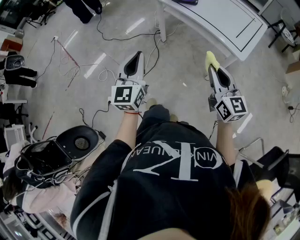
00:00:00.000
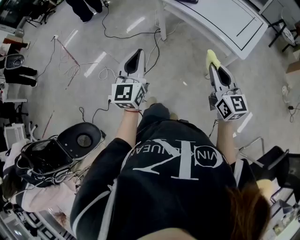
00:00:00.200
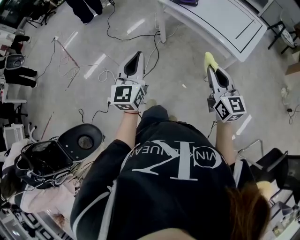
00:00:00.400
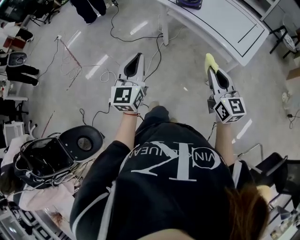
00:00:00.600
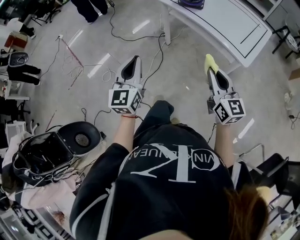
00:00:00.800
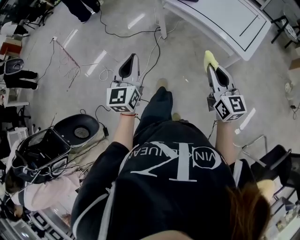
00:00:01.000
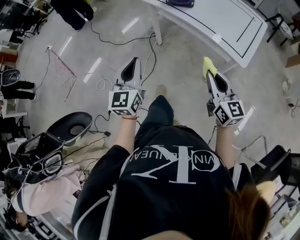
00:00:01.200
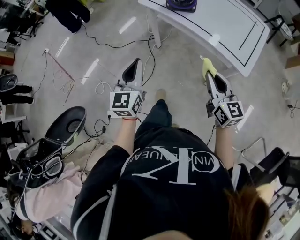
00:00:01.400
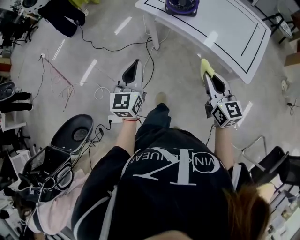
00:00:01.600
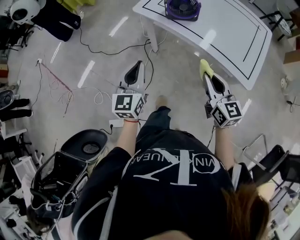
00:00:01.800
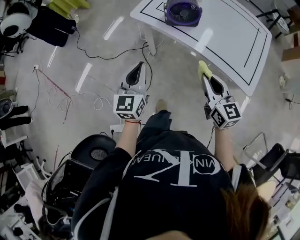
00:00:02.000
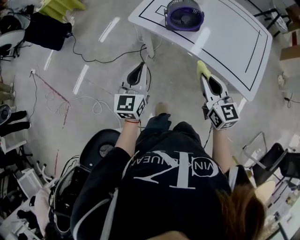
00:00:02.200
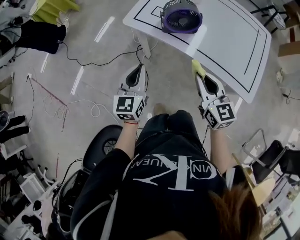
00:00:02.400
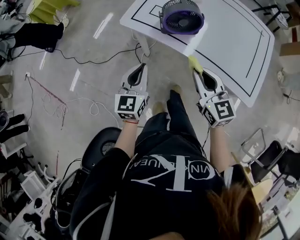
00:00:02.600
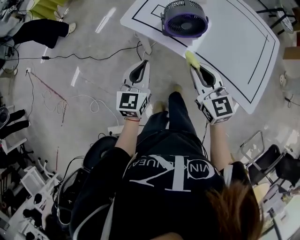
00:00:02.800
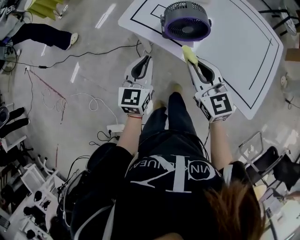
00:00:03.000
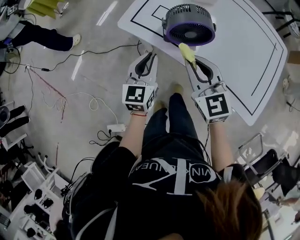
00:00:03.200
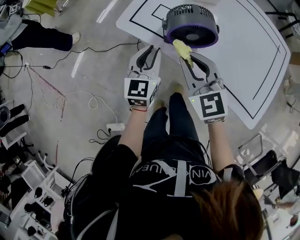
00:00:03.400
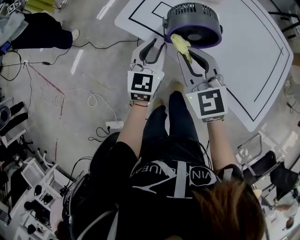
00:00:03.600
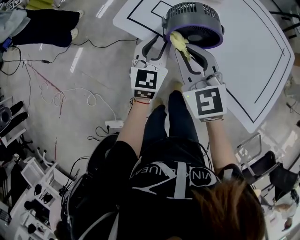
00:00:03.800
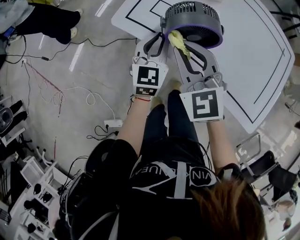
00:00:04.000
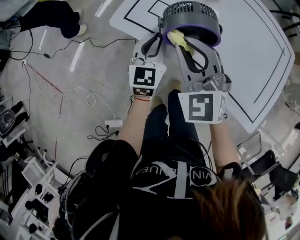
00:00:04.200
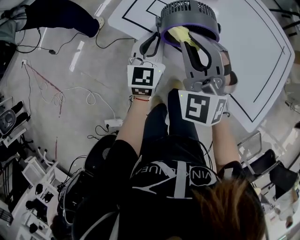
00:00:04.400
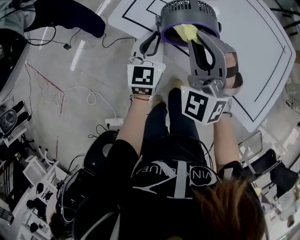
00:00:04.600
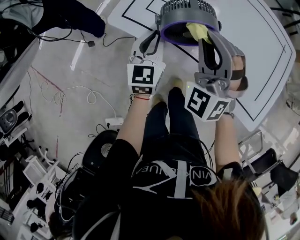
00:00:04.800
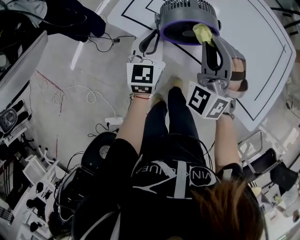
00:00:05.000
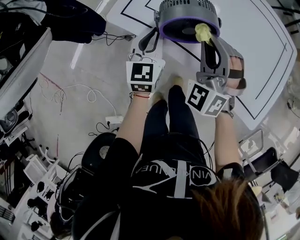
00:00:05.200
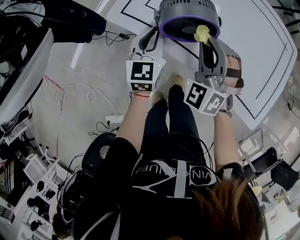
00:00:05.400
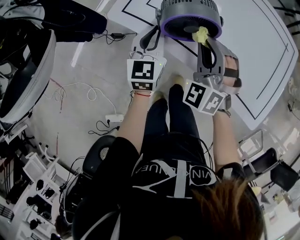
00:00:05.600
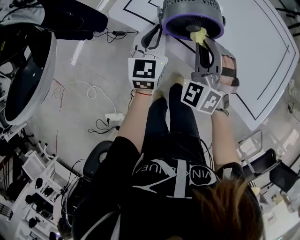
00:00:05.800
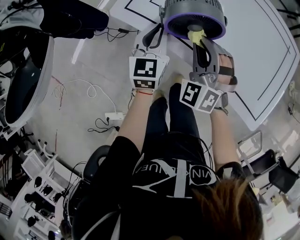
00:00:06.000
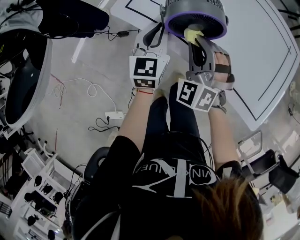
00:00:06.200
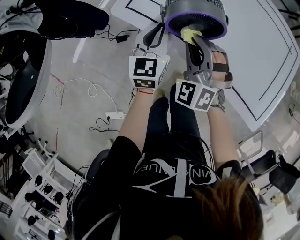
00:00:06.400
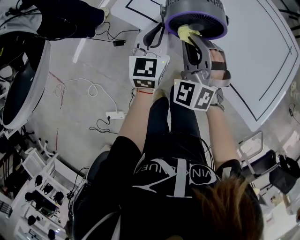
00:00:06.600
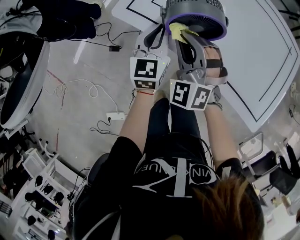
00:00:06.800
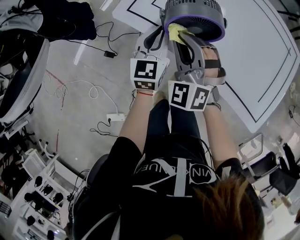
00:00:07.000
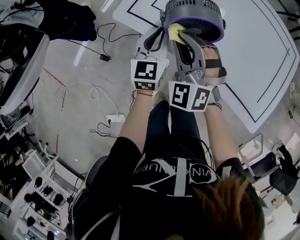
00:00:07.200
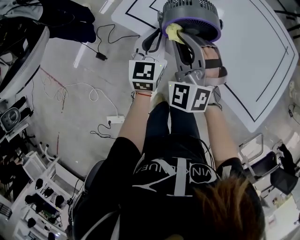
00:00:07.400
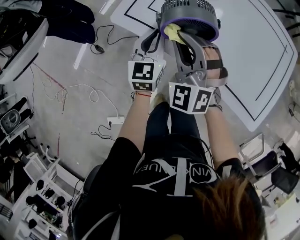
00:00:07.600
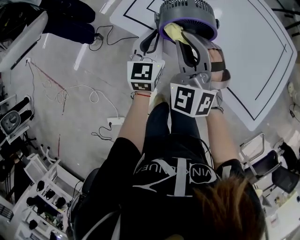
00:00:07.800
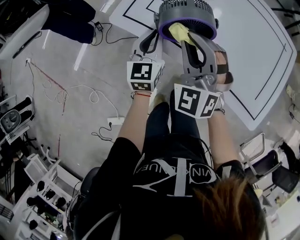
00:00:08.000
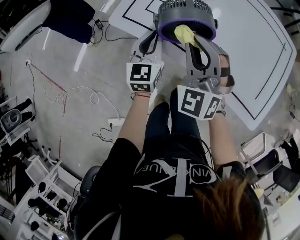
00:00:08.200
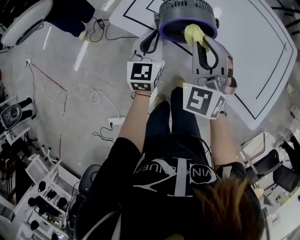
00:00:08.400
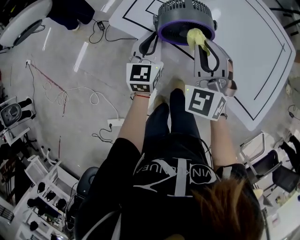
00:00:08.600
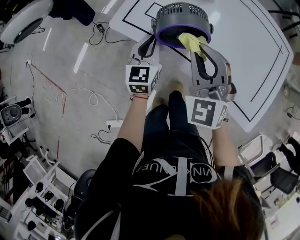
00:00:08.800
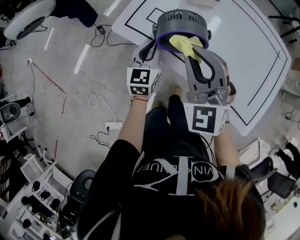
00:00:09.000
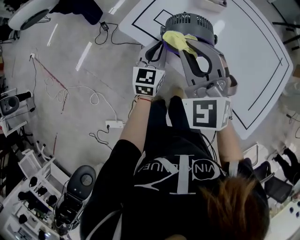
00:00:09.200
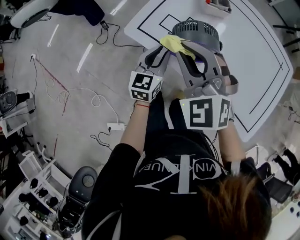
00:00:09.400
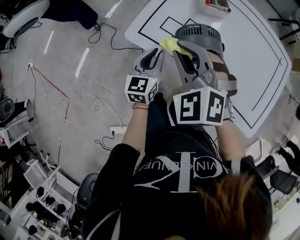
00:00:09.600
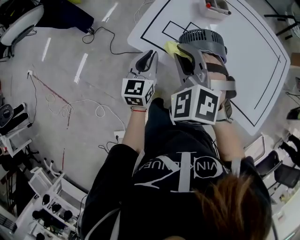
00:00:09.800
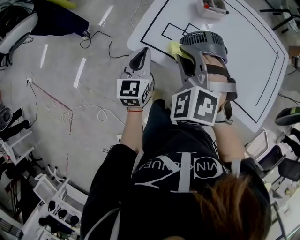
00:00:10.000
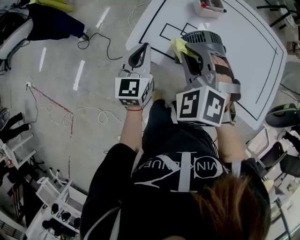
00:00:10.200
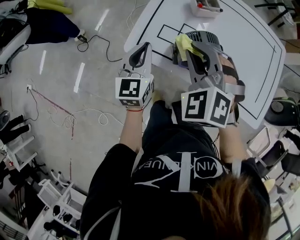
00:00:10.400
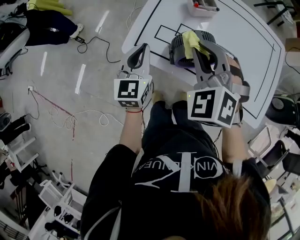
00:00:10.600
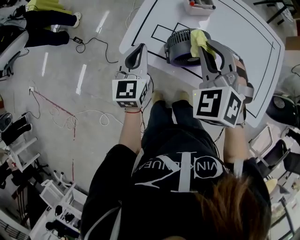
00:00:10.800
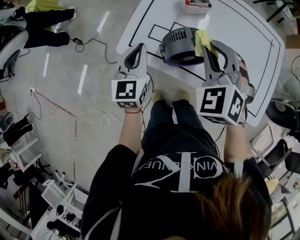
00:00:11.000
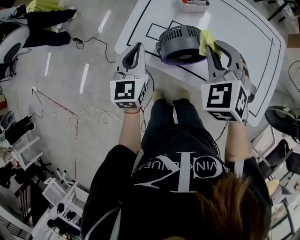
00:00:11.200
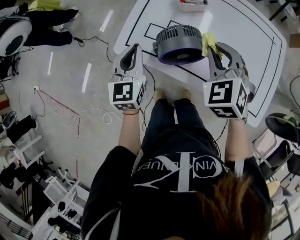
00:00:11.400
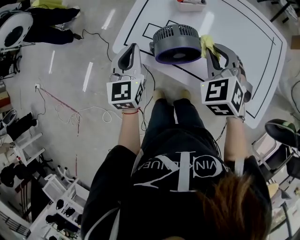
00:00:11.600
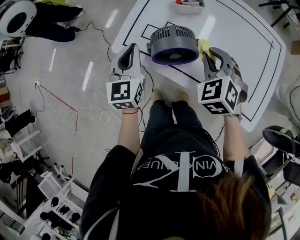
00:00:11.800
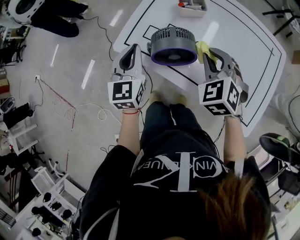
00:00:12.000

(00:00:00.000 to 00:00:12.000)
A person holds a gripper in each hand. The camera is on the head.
00:00:00.000 - 00:00:01.600: The grippers both shift forward by roughly 20 cm.
00:00:01.600 - 00:00:03.000: The grippers both shift forward by roughly 25 cm.
00:00:03.000 - 00:00:04.400: The left gripper shifts approximately 10 cm forward and to the right; the right gripper heads forward, covering roughly 10 cm, and rolls counterclockwise, seen from behind, by about 40 degrees.
00:00:04.400 - 00:00:06.000: The right gripper travels downward by about 10 cm.
00:00:06.000 - 00:00:07.600: The right gripper is displaced upward by roughly 5 cm.
00:00:07.600 - 00:00:09.000: The right gripper moves upward, some 5 cm.
00:00:09.000 - 00:00:10.400: The left gripper goes approximately 10 cm upward and to the left. Meanwhile the right gripper shifts about 10 cm forward and to the left, and swivels some 30 degrees.
00:00:10.400 - 00:00:12.000: The left gripper shifts some 5 cm to the right, while the right gripper heads to the right, covering about 15 cm.

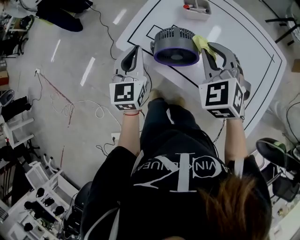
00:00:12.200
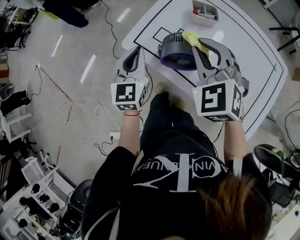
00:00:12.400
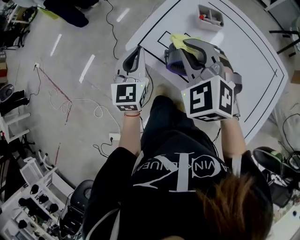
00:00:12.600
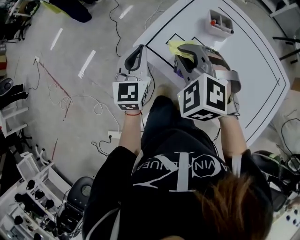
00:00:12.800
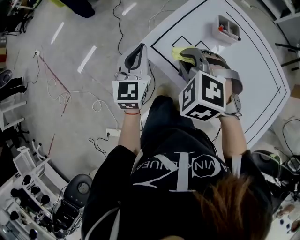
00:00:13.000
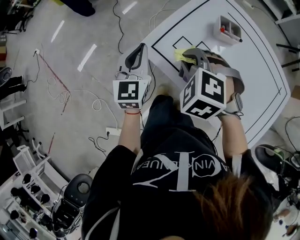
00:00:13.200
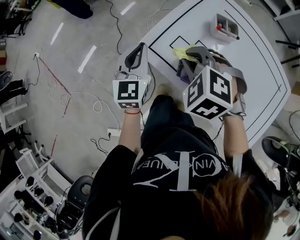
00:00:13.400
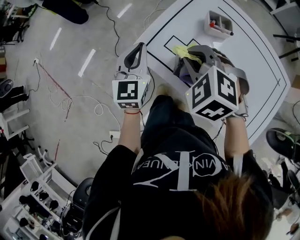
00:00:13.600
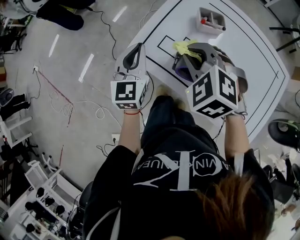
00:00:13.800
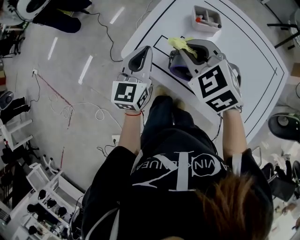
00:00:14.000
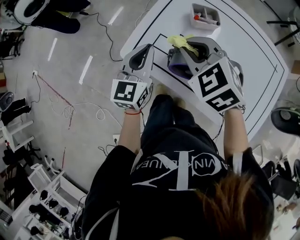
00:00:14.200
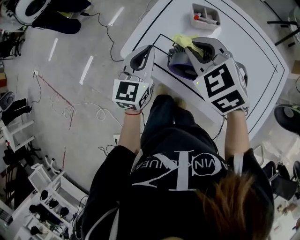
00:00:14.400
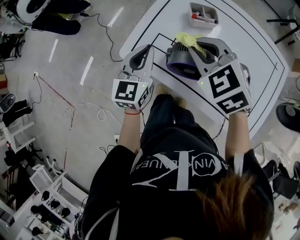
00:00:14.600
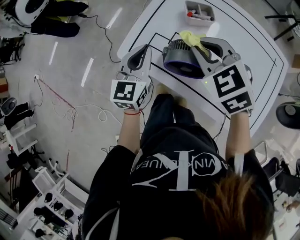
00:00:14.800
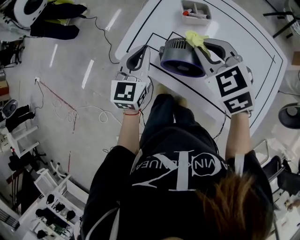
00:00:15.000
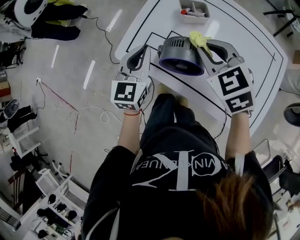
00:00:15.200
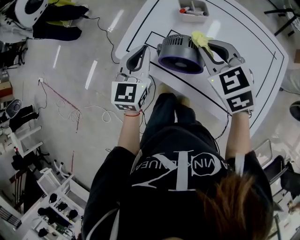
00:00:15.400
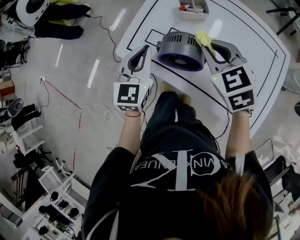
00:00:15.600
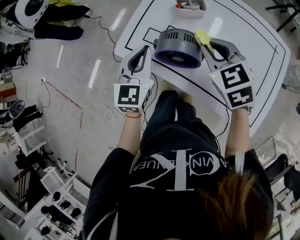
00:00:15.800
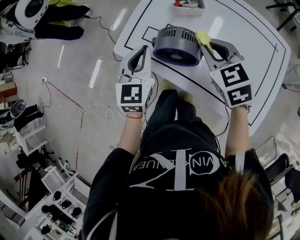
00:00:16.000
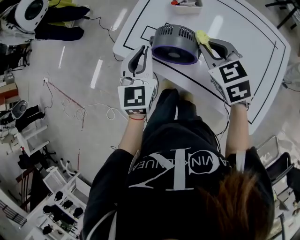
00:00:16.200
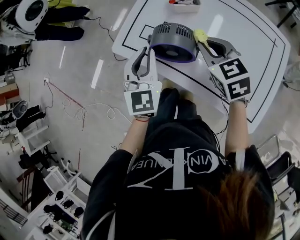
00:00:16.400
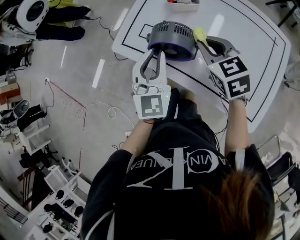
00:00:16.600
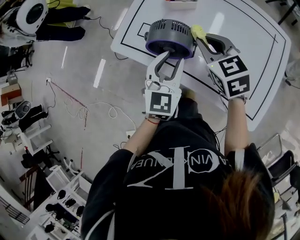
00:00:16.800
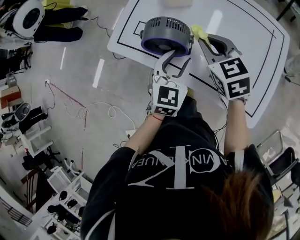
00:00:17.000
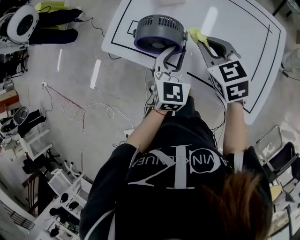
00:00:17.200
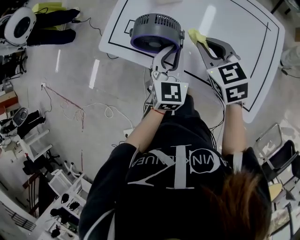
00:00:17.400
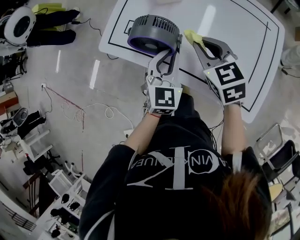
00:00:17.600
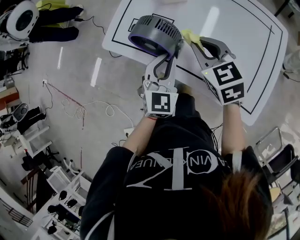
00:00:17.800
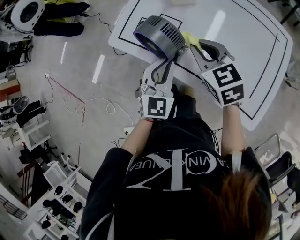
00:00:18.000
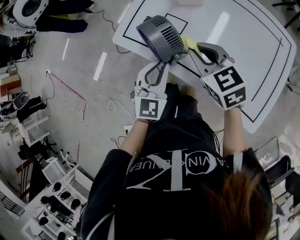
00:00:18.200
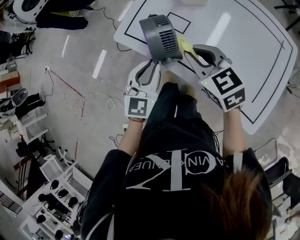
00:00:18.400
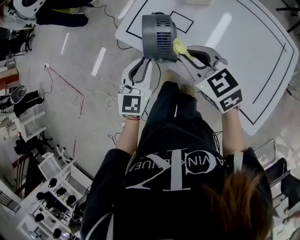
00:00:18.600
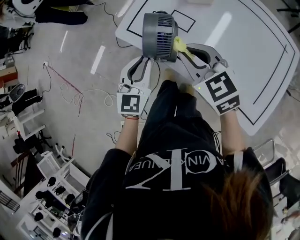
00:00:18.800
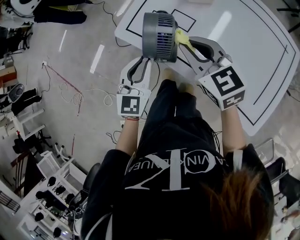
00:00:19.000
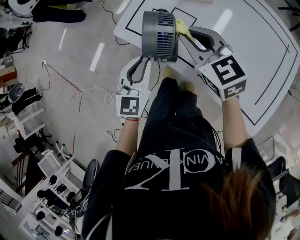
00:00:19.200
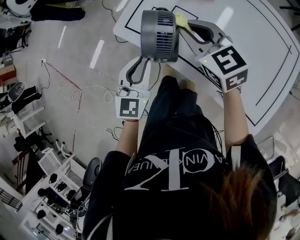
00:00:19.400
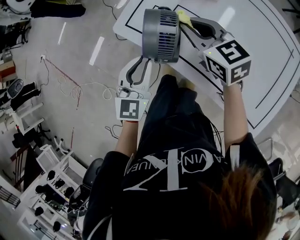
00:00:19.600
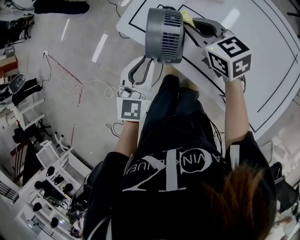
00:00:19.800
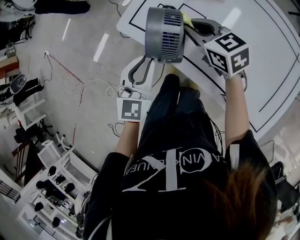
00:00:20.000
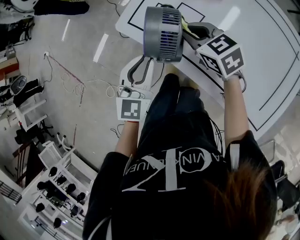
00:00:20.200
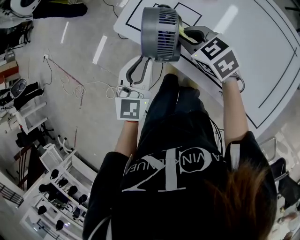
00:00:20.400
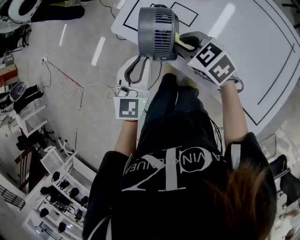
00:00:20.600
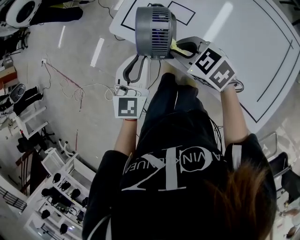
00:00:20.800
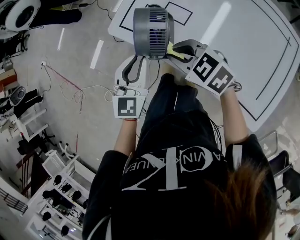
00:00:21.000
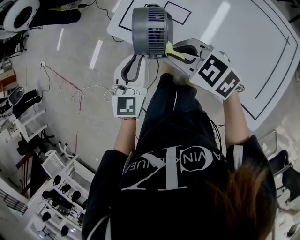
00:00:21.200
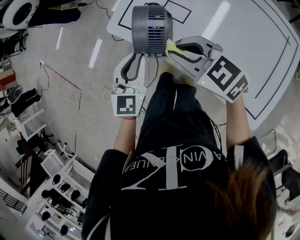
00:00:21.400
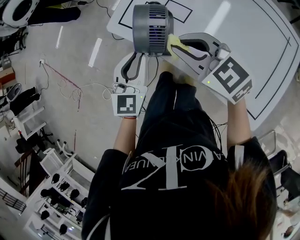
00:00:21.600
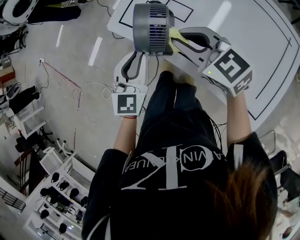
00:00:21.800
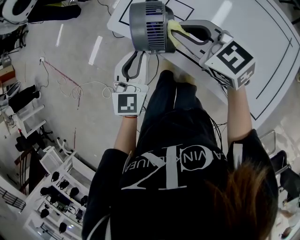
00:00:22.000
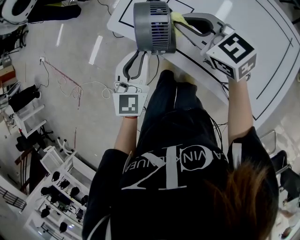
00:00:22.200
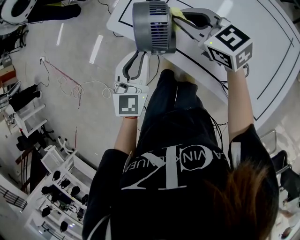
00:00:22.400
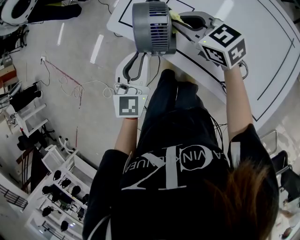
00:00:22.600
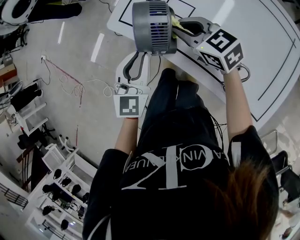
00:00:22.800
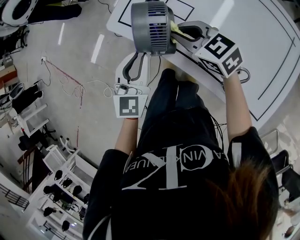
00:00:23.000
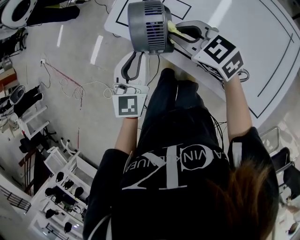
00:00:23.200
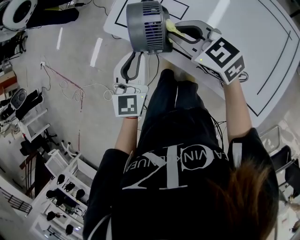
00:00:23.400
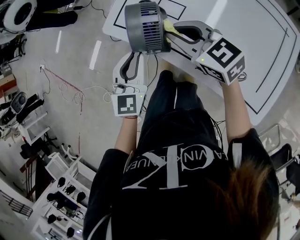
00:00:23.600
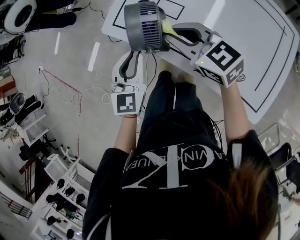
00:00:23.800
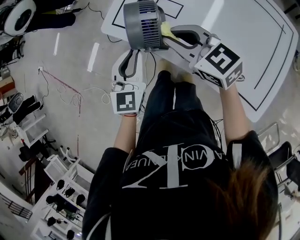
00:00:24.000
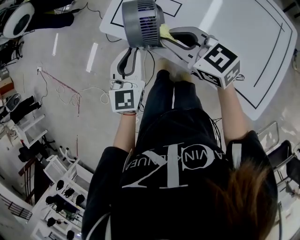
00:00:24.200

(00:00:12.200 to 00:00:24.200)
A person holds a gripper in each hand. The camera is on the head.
00:00:12.200 - 00:00:13.800: The right gripper travels to the left and forward by about 10 cm, and swivels approximately 20 degrees; the left gripper is displaced forward by about 5 cm, and goes to the left and returns, approximately 10 cm each way.
00:00:13.800 - 00:00:15.200: The grippers both shift to the right by about 10 cm. The right gripper swivels about 30 degrees.
00:00:15.200 - 00:00:16.600: The right gripper moves some 5 cm, while the left gripper shifts about 10 cm backward and to the right.
00:00:16.600 - 00:00:18.200: The right gripper reaches some 5 cm to the right, then returns, while the left gripper is displaced downward by roughly 10 cm, reaches approximately 10 cm to the right, then returns, and opens, then closes once more.
00:00:18.200 - 00:00:19.800: The left gripper travels to the left by some 10 cm. Meanwhile the right gripper is displaced forward by some 10 cm.
00:00:19.800 - 00:00:21.200: The right gripper is displaced backward and to the left by approximately 10 cm, and changes its angle by about 20 degrees.
00:00:21.200 - 00:00:22.600: The right gripper goes about 10 cm forward.
00:00:22.600 - 00:00:24.200: The right gripper shifts roughly 10 cm backward.
